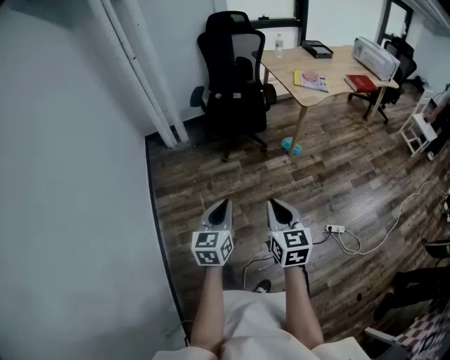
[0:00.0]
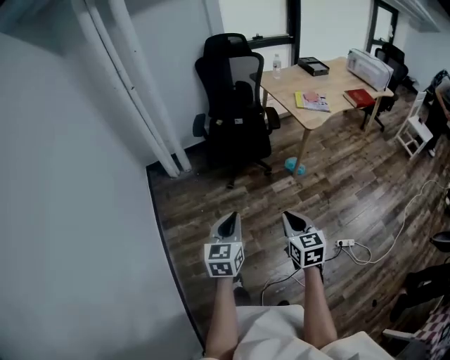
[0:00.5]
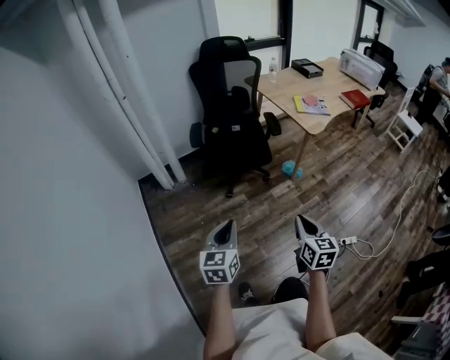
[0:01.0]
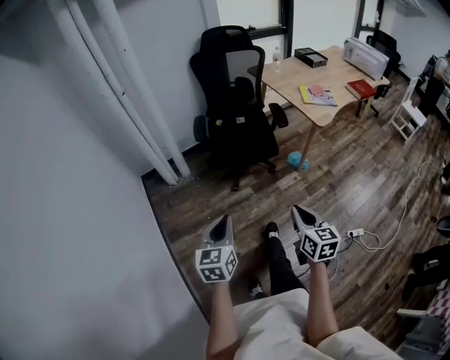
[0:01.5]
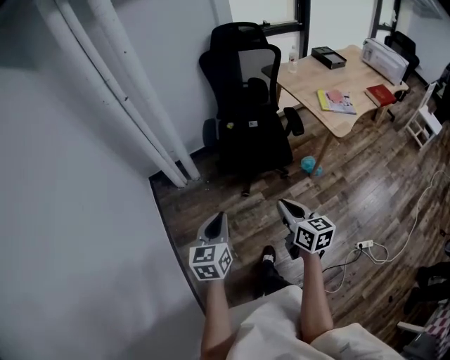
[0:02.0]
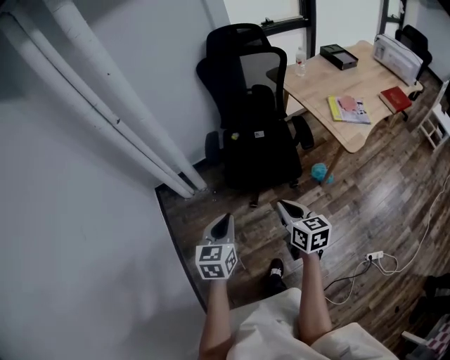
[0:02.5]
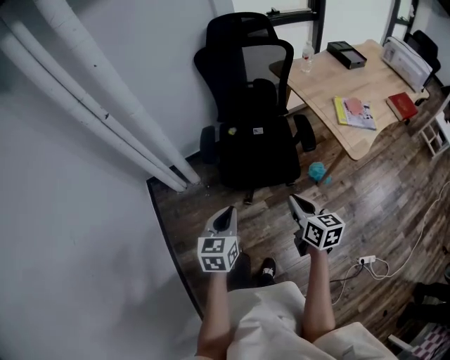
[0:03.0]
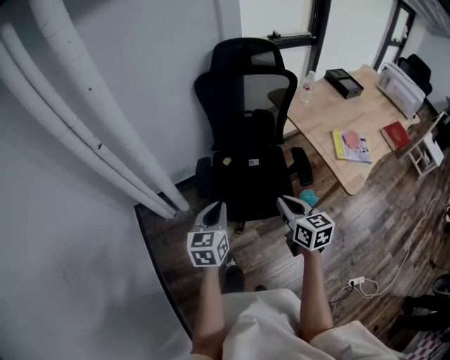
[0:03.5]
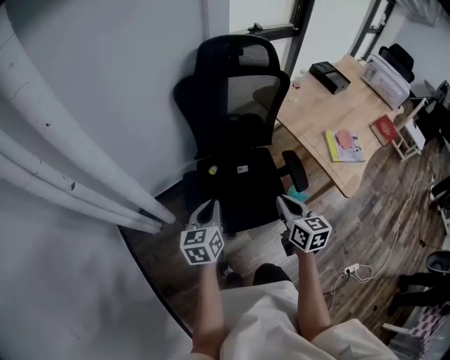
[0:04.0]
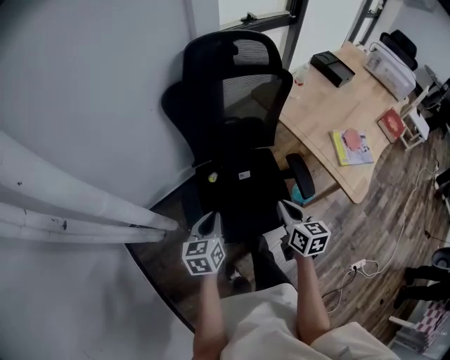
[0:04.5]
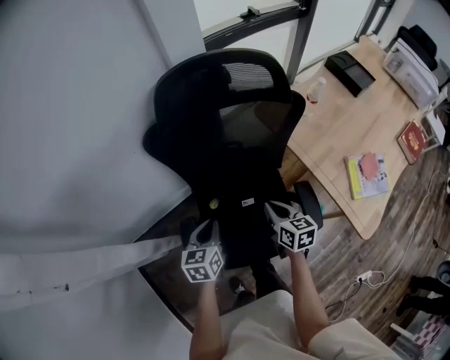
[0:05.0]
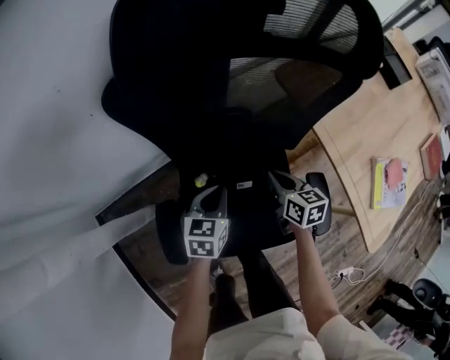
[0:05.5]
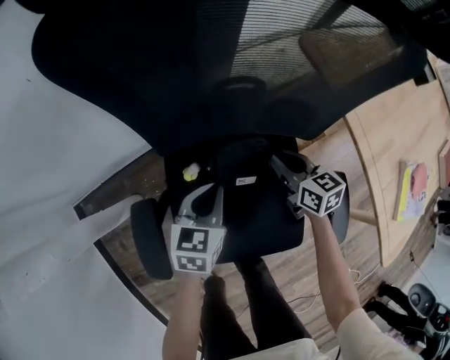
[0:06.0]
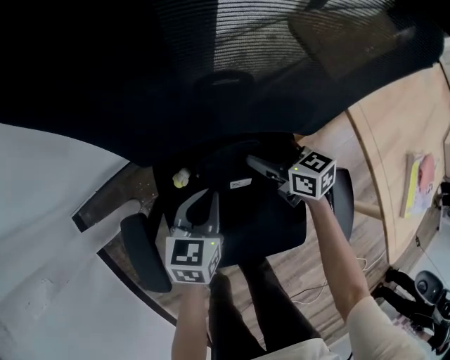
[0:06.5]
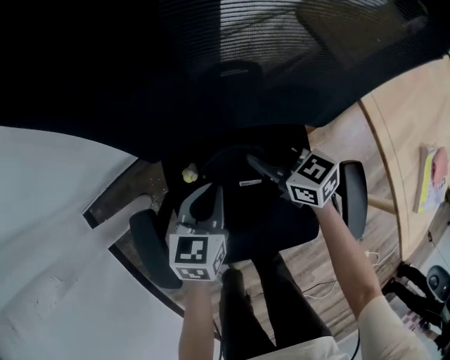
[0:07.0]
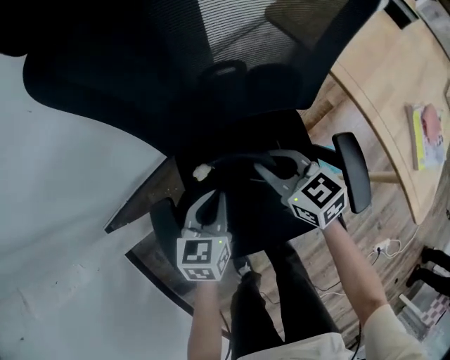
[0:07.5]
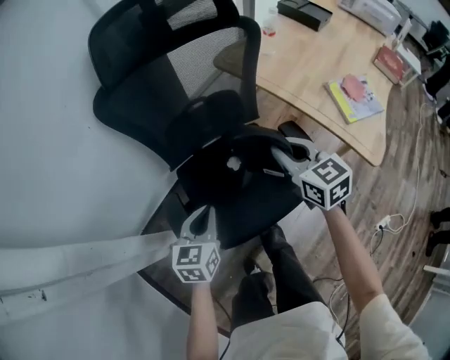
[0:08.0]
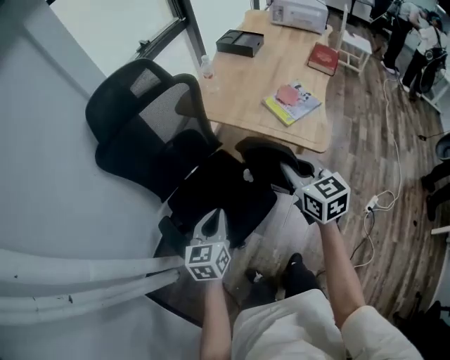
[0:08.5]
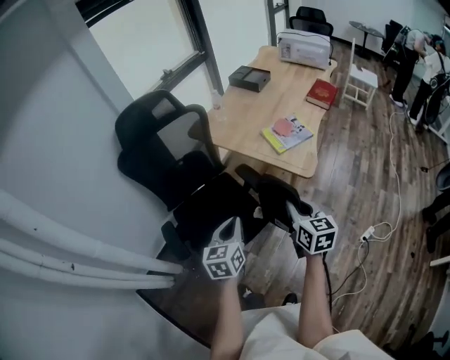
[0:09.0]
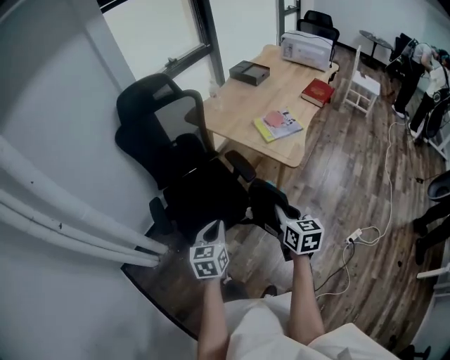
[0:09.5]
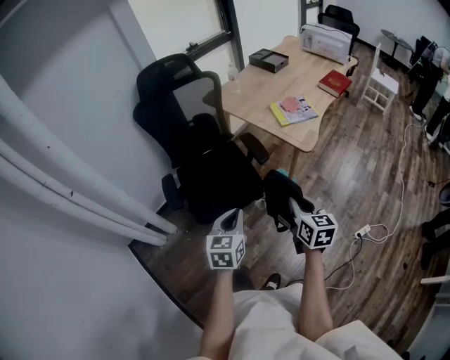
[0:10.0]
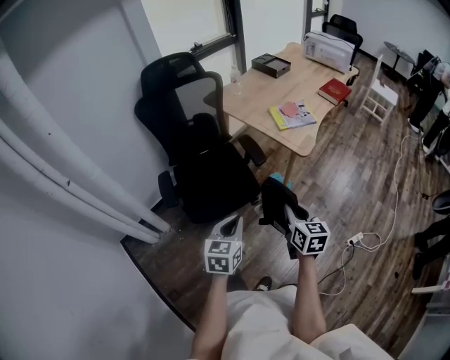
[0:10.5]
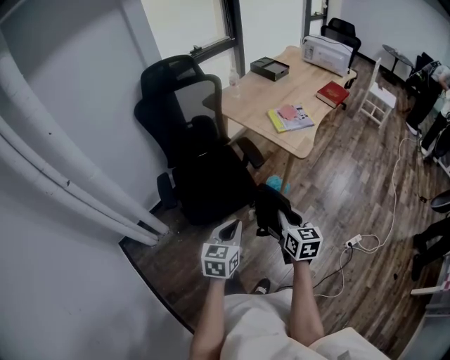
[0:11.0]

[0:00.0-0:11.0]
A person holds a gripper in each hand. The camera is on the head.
0:00.0 to 0:02.0: The pair of grippers is taken forward and to the left, some 40 cm.
0:02.0 to 0:03.5: Both grippers travel together forward, approximately 35 cm.
0:03.5 to 0:05.5: The two grippers travel together, forward, about 50 cm. Both grippers travel together downward, approximately 30 cm. The left gripper rotates approximately 20 degrees.
0:05.5 to 0:07.5: The left gripper travels downward by approximately 10 cm. Meanwhile the right gripper travels to the left by some 5 cm, goes downward and returns, about 15 cm each way, changes its angle by roughly 20 degrees, and opens, then closes once more.
0:07.5 to 0:09.0: The right gripper shifts by roughly 60 cm, and turns by about 50 degrees, while the left gripper moves some 50 cm.
0:09.0 to 0:11.0: The grippers both shift backward by some 20 cm.

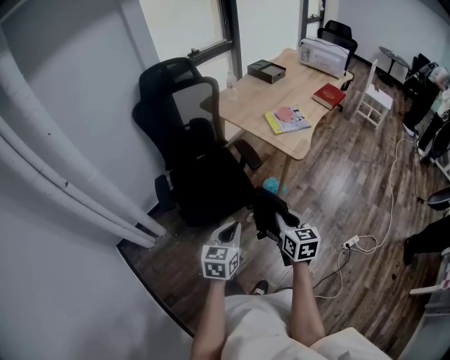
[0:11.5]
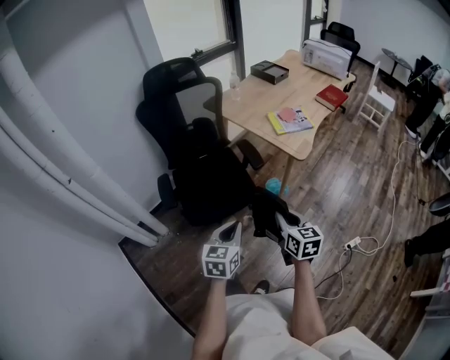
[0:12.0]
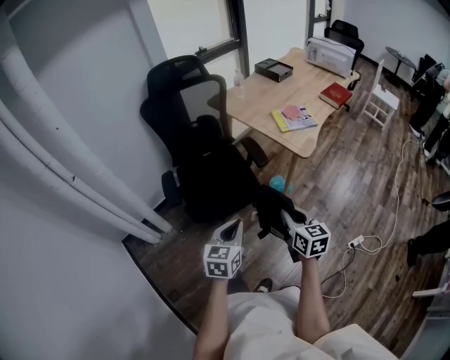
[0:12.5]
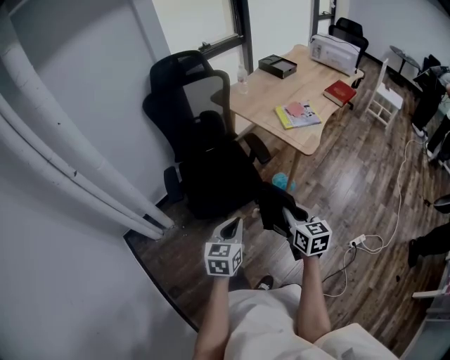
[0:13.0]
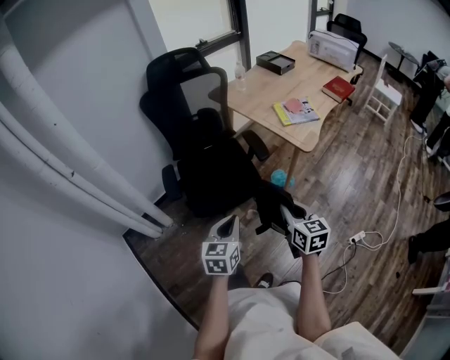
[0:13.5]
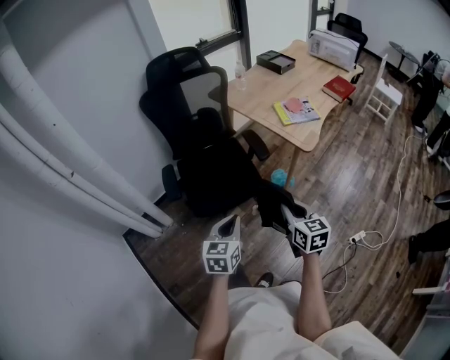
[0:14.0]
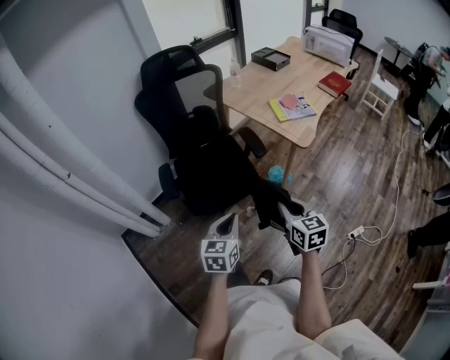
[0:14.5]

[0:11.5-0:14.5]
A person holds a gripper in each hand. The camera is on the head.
0:11.5 to 0:13.0: The grippers stay close to where they were, moving slightly.
0:13.0 to 0:14.5: The two grippers keep their place.

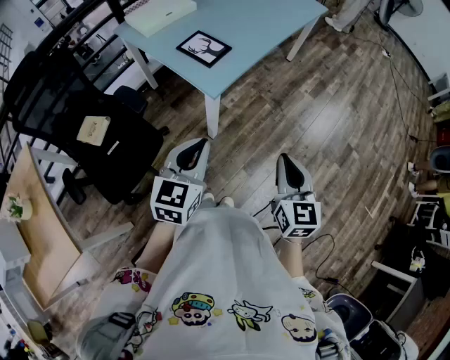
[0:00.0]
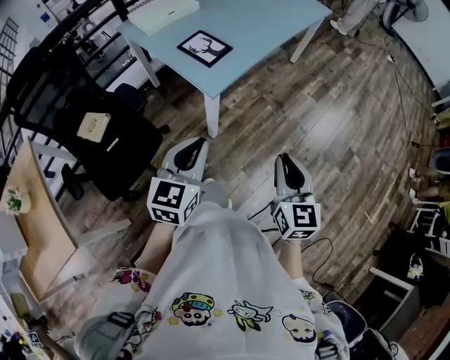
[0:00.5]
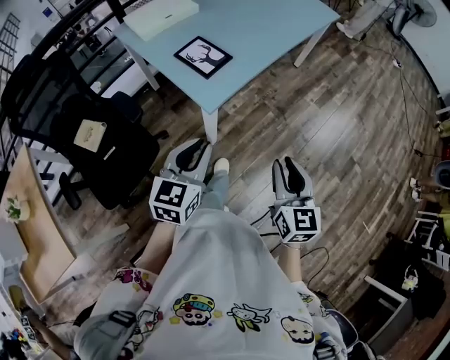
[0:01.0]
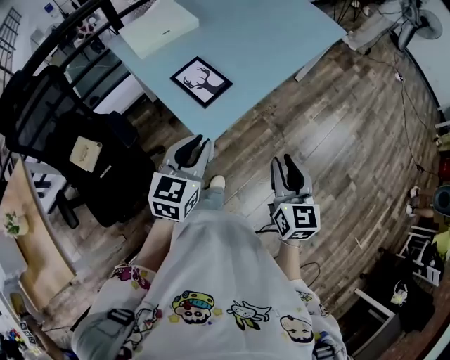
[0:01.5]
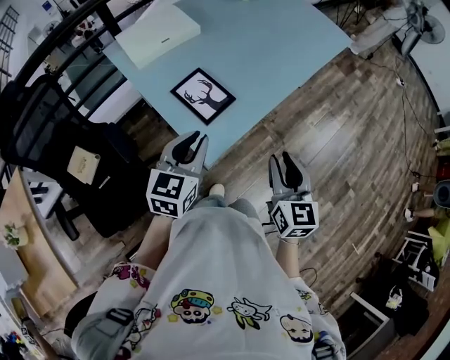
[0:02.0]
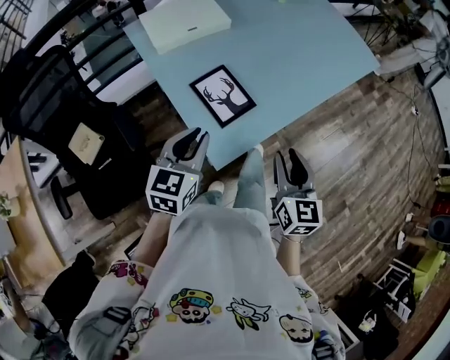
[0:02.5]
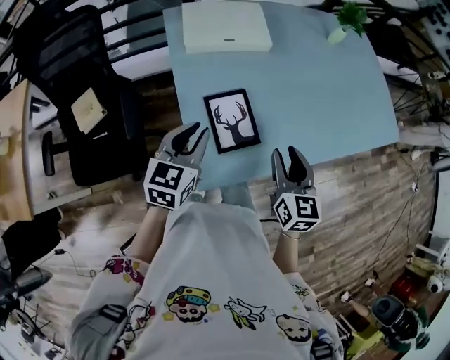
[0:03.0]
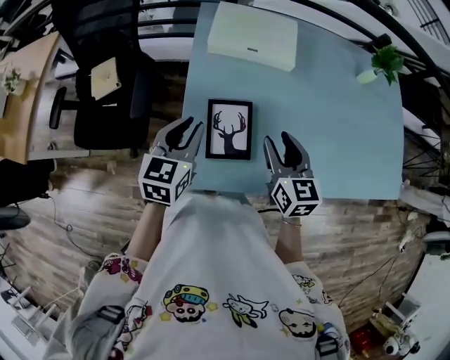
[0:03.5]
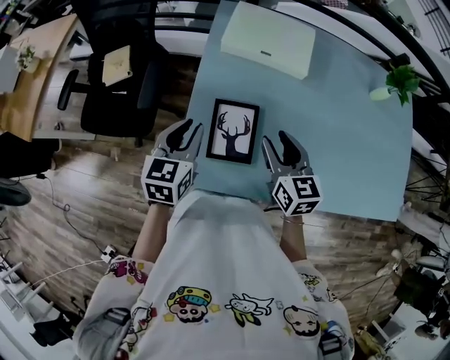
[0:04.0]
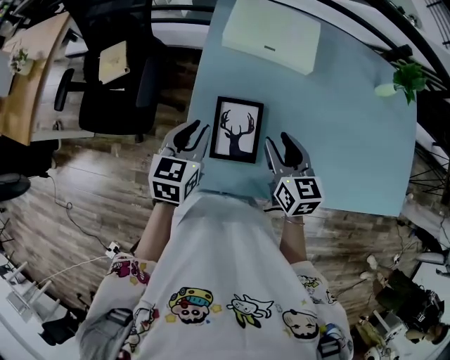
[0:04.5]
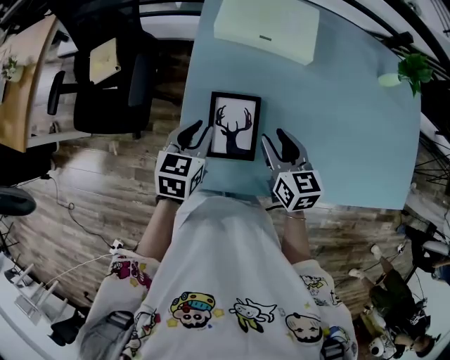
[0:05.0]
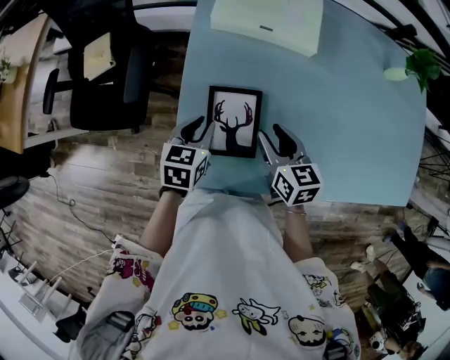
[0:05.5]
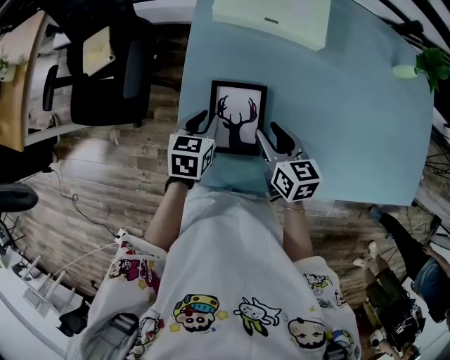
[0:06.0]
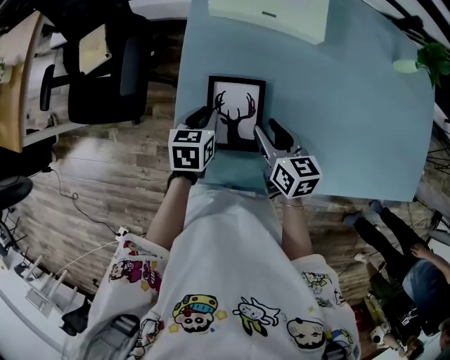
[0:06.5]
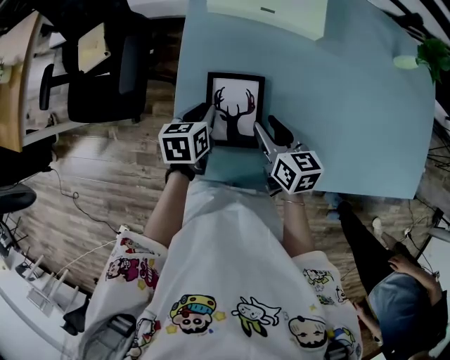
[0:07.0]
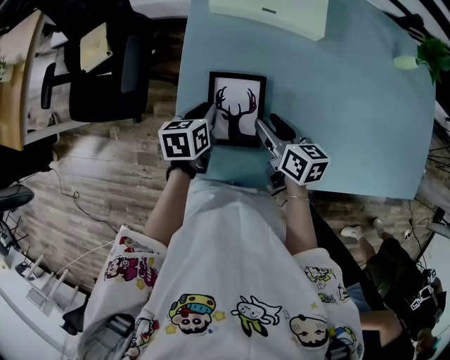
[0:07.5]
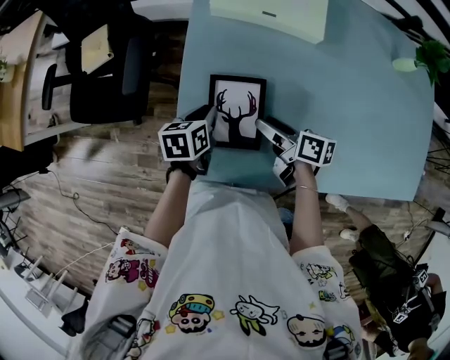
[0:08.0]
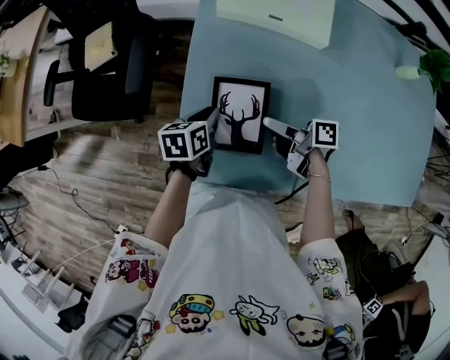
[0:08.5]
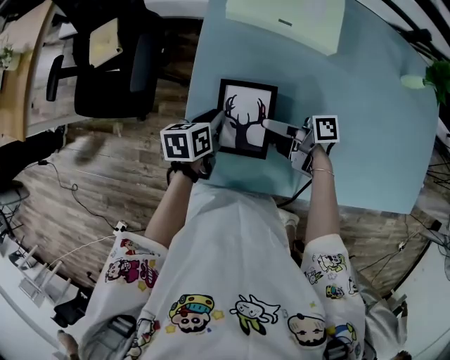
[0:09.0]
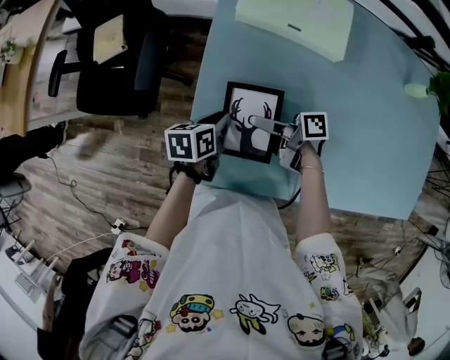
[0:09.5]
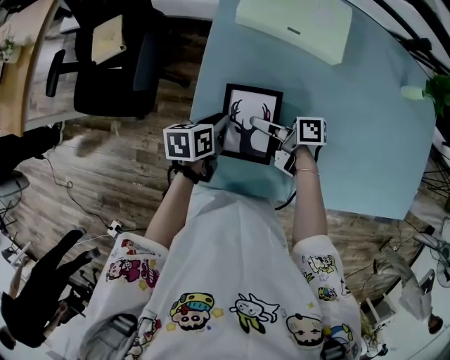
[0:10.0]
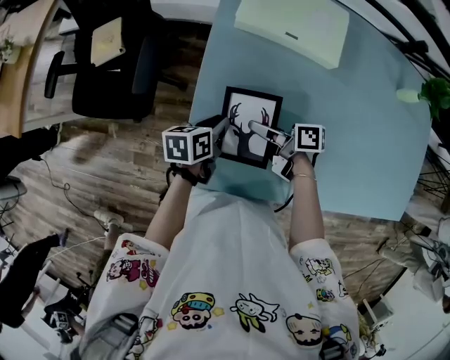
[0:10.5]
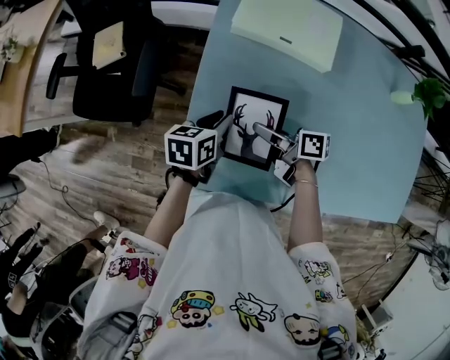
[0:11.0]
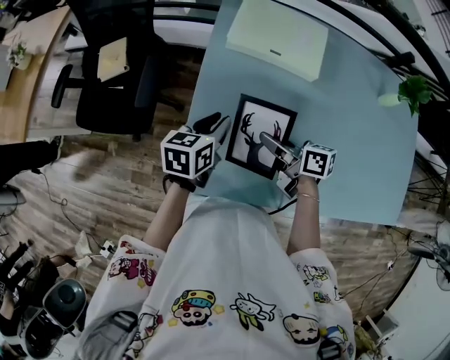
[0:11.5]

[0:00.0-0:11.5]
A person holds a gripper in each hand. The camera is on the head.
0:00.0 to 0:02.0: Both grippers move forward, approximately 30 cm. The right gripper opens.
0:02.0 to 0:04.0: The right gripper ends up approximately 35 cm from where it was, and turns by some 60 degrees. Meanwhile the left gripper ends up about 15 cm from where it was, and changes its angle by roughly 60 degrees.
0:04.0 to 0:06.0: Both grippers move downward, about 15 cm. The left gripper changes its angle by approximately 20 degrees.
0:06.0 to 0:07.5: The grippers make only small movements.
0:07.5 to 0:09.5: The right gripper travels to the left by about 10 cm, and turns by roughly 50 degrees.
0:09.5 to 0:11.5: The left gripper is displaced upward by some 10 cm, and rotates roughly 20 degrees. Meanwhile the right gripper is displaced upward and to the right by some 10 cm, changes its angle by roughly 30 degrees, and closes.

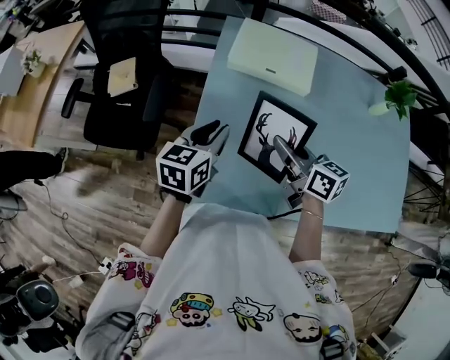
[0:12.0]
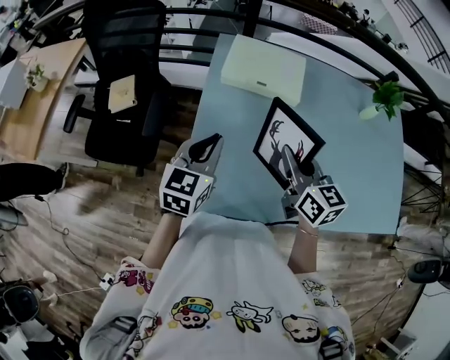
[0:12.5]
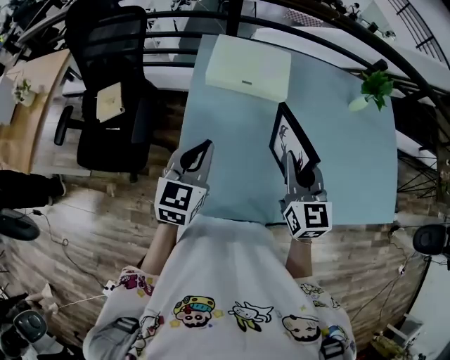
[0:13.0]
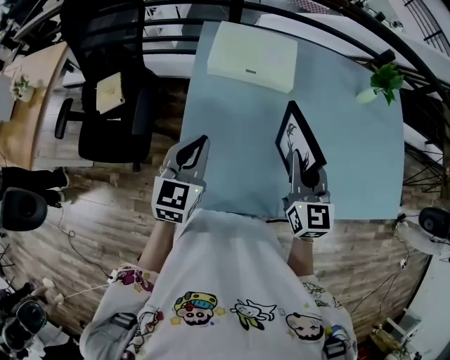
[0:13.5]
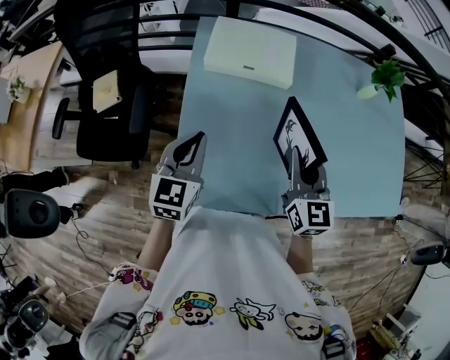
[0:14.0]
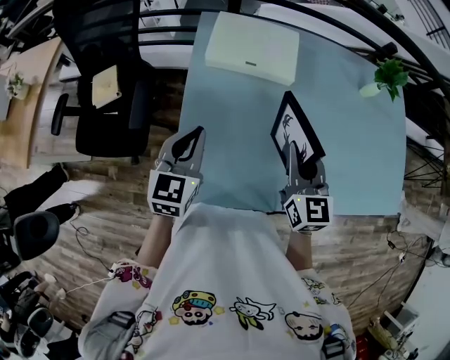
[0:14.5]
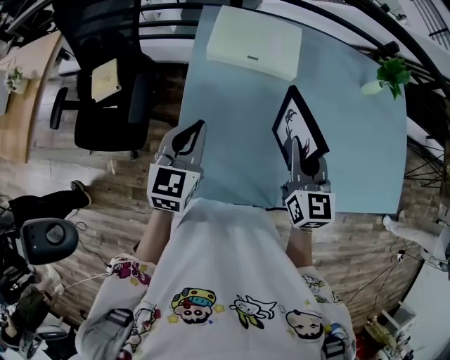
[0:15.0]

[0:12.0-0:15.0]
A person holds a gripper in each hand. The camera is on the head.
0:12.0 to 0:13.5: The right gripper heads to the right, covering roughly 10 cm, and changes its angle by approximately 50 degrees, while the left gripper swivels some 20 degrees, and closes its fingers.
0:13.5 to 0:15.0: The grippers move only a little.
